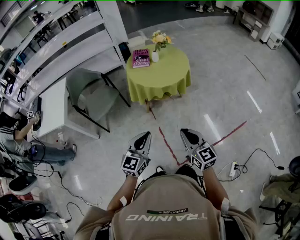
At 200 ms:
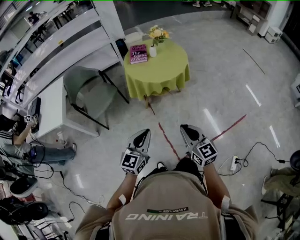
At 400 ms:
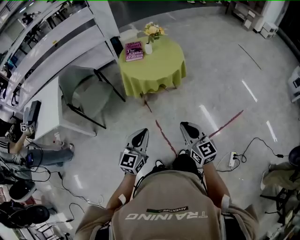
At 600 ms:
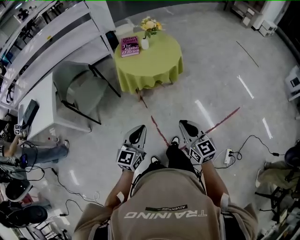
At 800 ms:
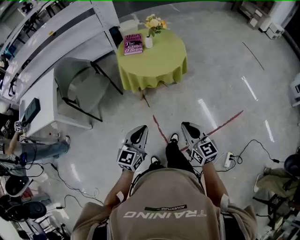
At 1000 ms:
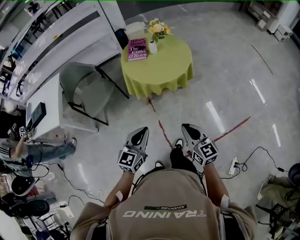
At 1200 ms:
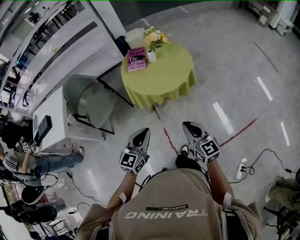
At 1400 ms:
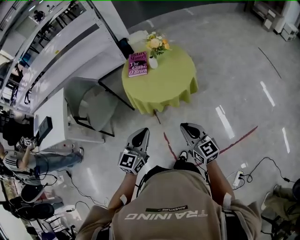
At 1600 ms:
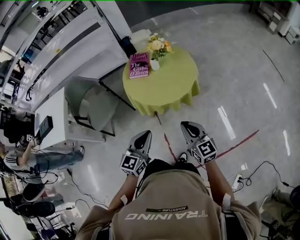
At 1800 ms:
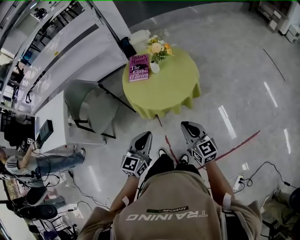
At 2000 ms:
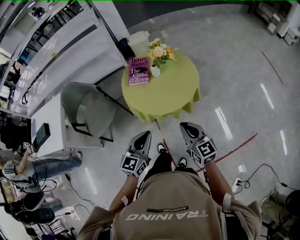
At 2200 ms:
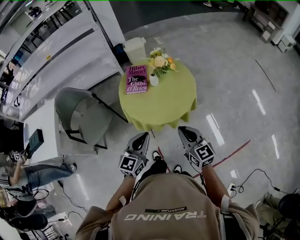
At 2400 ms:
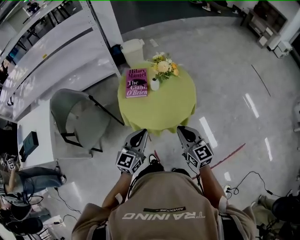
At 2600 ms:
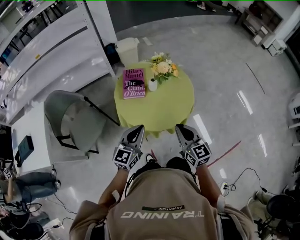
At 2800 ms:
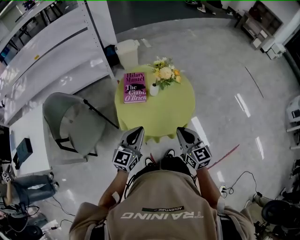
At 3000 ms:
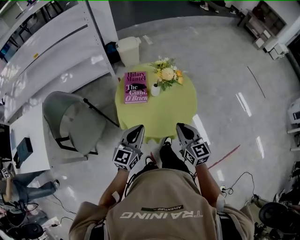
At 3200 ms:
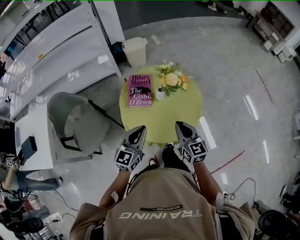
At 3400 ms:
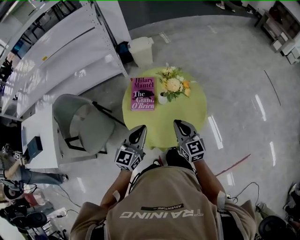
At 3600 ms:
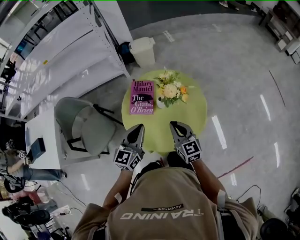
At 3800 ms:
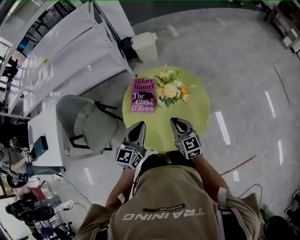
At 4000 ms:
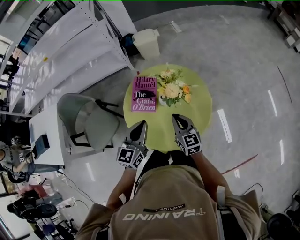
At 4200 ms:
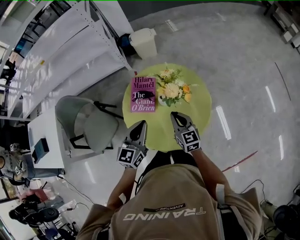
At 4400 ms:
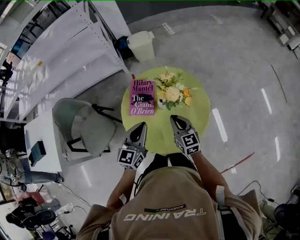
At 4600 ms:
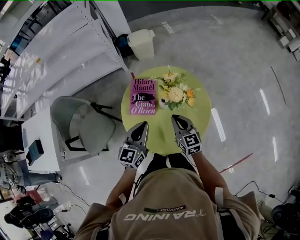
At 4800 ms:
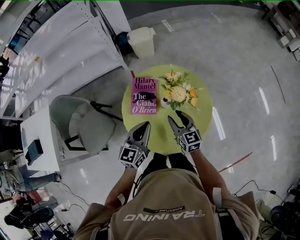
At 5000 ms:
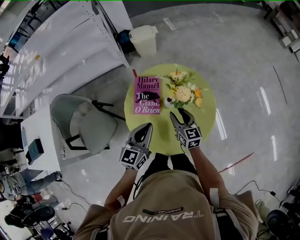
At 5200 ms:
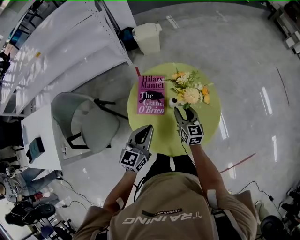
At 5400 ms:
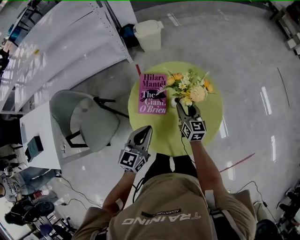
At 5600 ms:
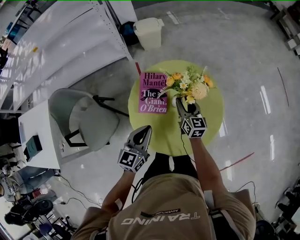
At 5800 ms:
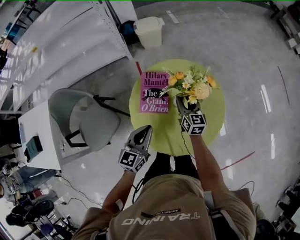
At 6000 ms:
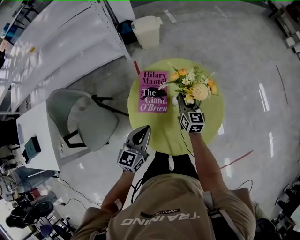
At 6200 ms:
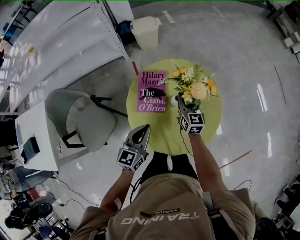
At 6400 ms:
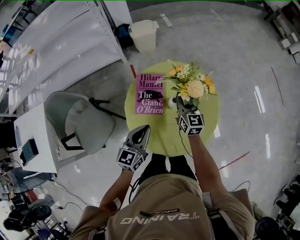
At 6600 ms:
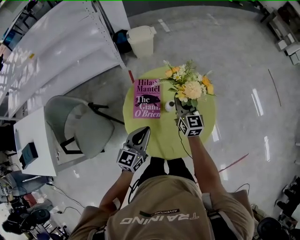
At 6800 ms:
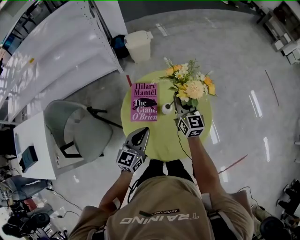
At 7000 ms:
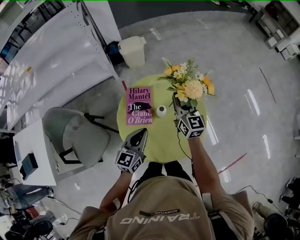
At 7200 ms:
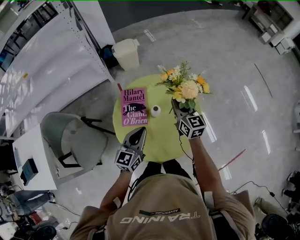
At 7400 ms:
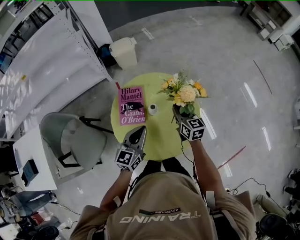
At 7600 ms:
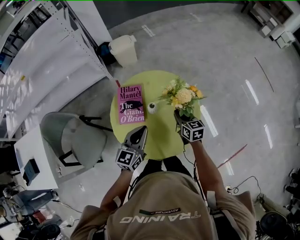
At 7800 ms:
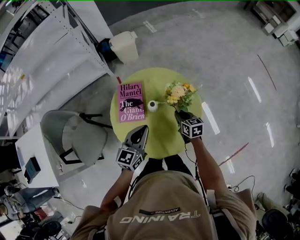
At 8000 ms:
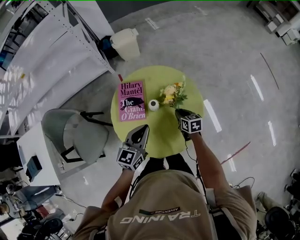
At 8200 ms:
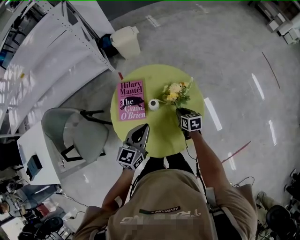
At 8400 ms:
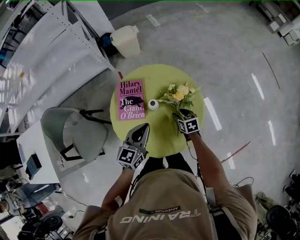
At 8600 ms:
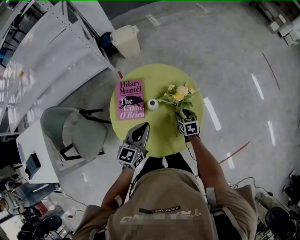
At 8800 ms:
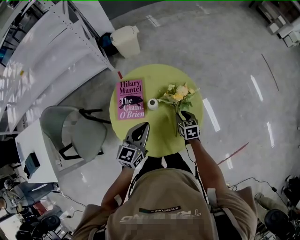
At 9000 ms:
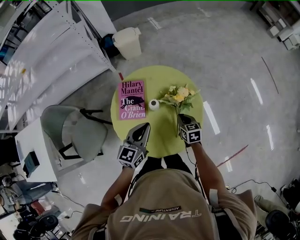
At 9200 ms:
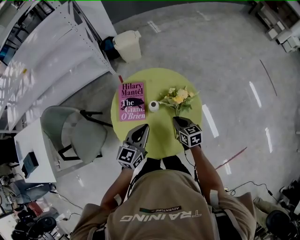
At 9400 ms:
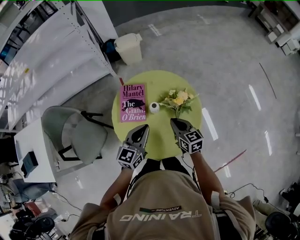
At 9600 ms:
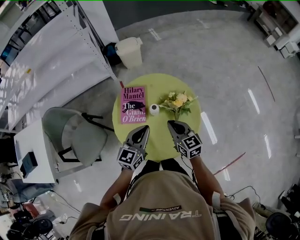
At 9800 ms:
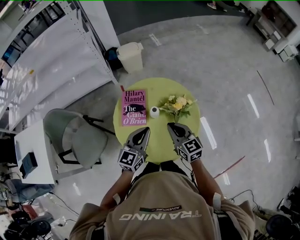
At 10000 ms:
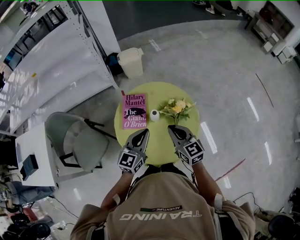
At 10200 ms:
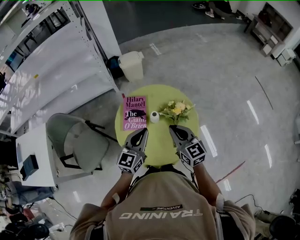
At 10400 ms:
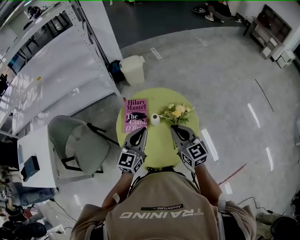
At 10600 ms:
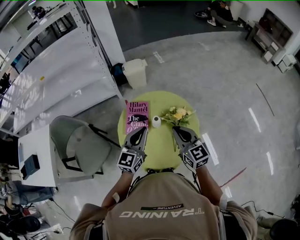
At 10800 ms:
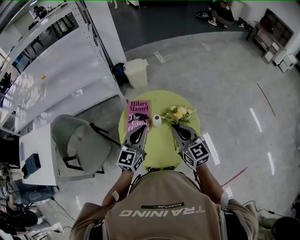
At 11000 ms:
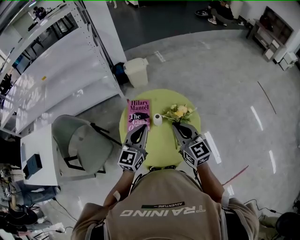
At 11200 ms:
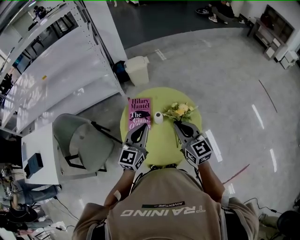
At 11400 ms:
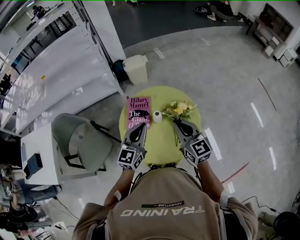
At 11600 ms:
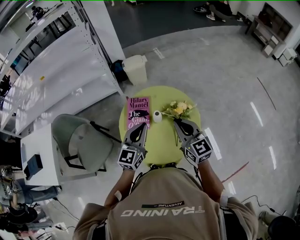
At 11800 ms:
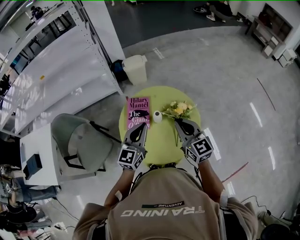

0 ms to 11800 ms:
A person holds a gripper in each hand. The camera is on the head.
0 ms to 1400 ms: The grippers both shift forward by roughly 25 cm.
1400 ms to 3000 ms: The grippers both shift forward by roughly 30 cm.
3000 ms to 4400 ms: The right gripper is displaced forward and downward by about 20 cm, while the left gripper moves forward, some 15 cm.
4400 ms to 6000 ms: The right gripper shifts approximately 15 cm forward and downward, and opens, then closes again; the left gripper heads to the left and downward, covering approximately 10 cm.
6000 ms to 7400 ms: The left gripper moves to the right, about 10 cm, while the right gripper travels to the right and upward by some 15 cm.
7400 ms to 8800 ms: The right gripper travels downward by roughly 15 cm, rotates roughly 30 degrees, and opens.
8800 ms to 10400 ms: The right gripper heads upward, covering roughly 30 cm, tilts its fingers roughly 40 degrees upward, and closes its fingers. The left gripper goes about 10 cm upward.
10400 ms to 11800 ms: There are only small adjustments of the grippers.

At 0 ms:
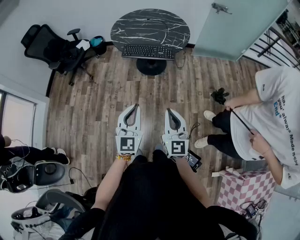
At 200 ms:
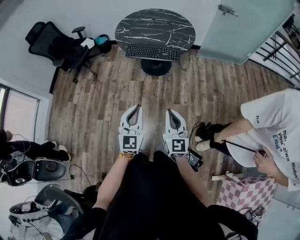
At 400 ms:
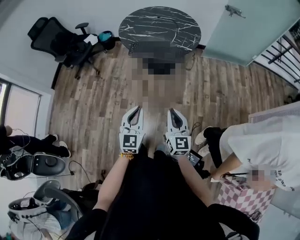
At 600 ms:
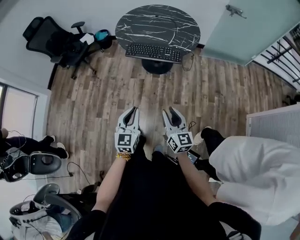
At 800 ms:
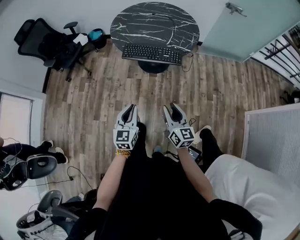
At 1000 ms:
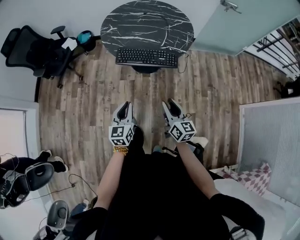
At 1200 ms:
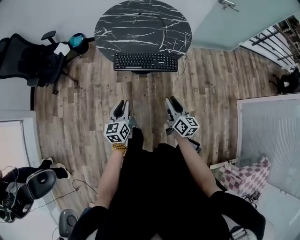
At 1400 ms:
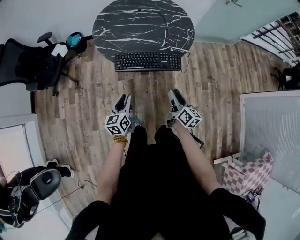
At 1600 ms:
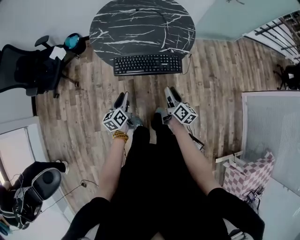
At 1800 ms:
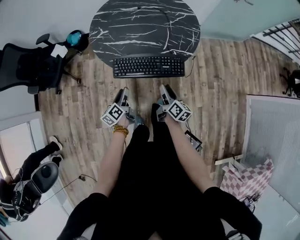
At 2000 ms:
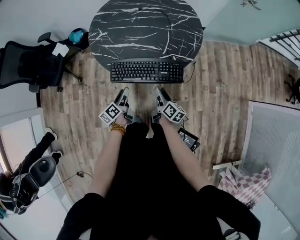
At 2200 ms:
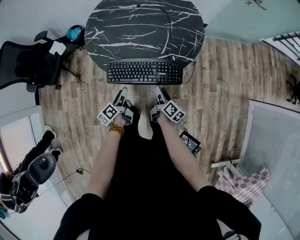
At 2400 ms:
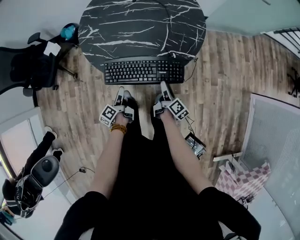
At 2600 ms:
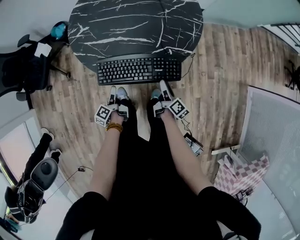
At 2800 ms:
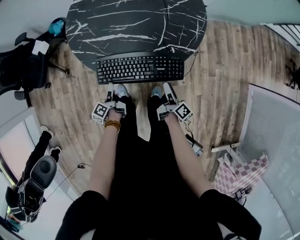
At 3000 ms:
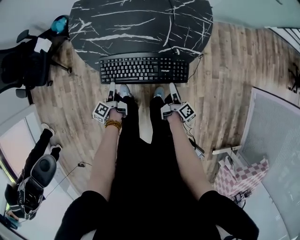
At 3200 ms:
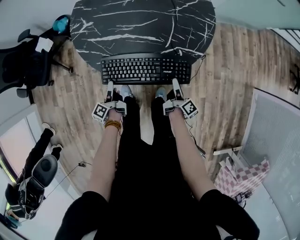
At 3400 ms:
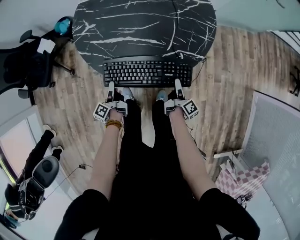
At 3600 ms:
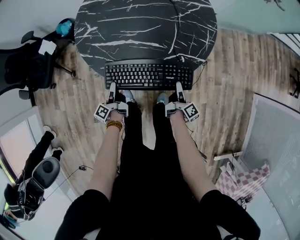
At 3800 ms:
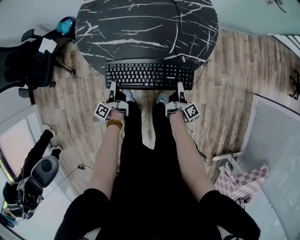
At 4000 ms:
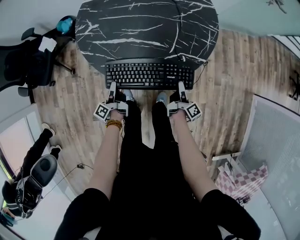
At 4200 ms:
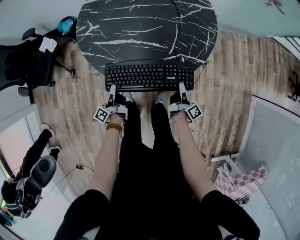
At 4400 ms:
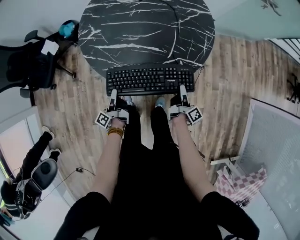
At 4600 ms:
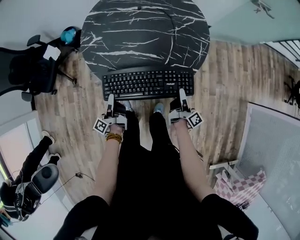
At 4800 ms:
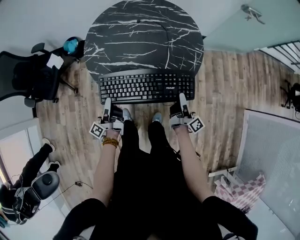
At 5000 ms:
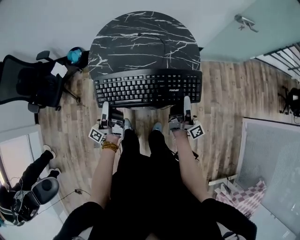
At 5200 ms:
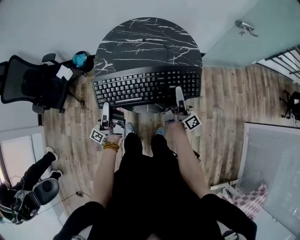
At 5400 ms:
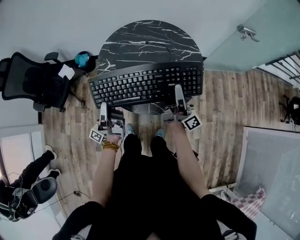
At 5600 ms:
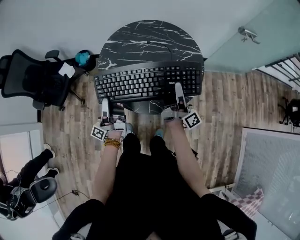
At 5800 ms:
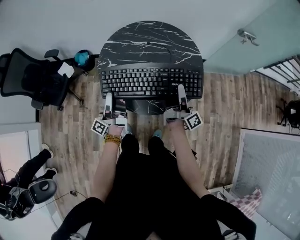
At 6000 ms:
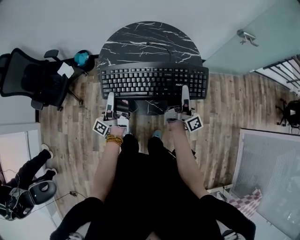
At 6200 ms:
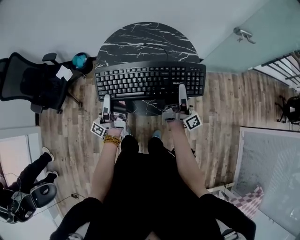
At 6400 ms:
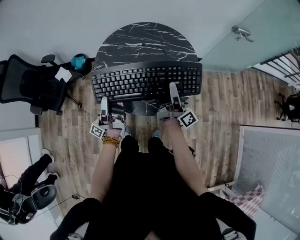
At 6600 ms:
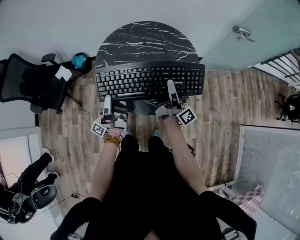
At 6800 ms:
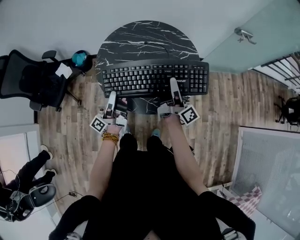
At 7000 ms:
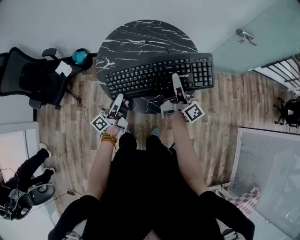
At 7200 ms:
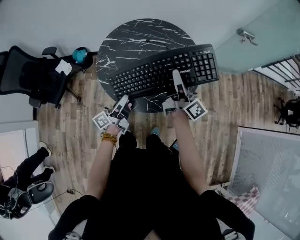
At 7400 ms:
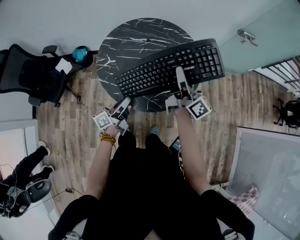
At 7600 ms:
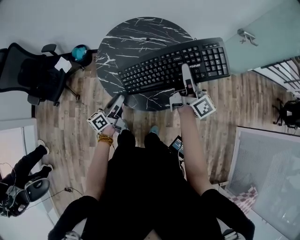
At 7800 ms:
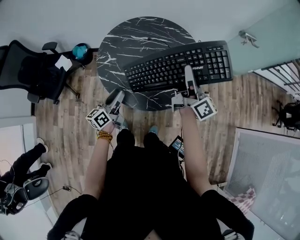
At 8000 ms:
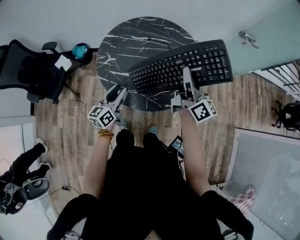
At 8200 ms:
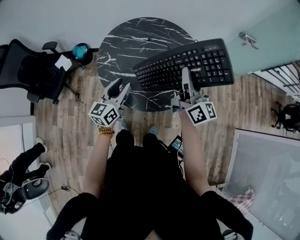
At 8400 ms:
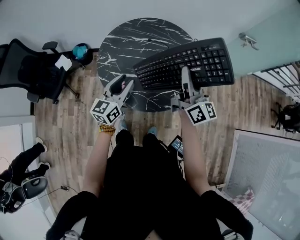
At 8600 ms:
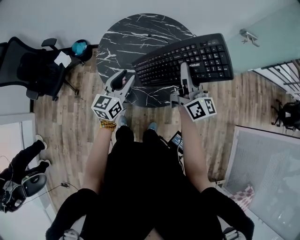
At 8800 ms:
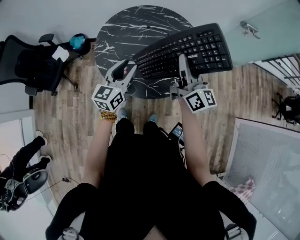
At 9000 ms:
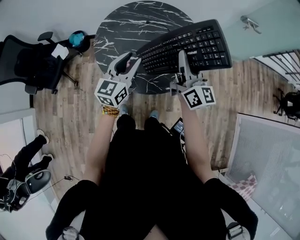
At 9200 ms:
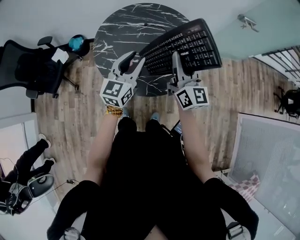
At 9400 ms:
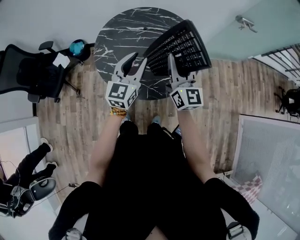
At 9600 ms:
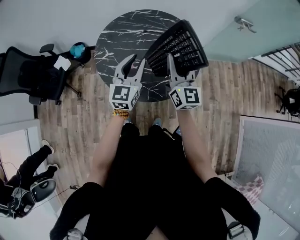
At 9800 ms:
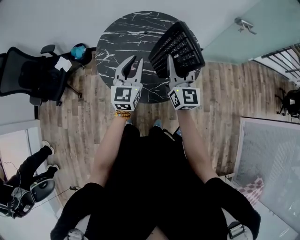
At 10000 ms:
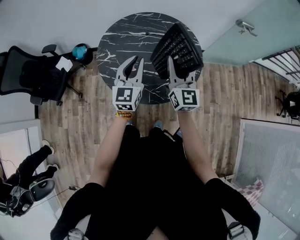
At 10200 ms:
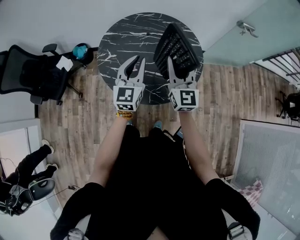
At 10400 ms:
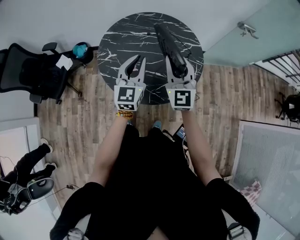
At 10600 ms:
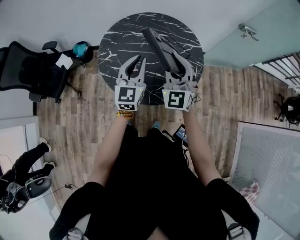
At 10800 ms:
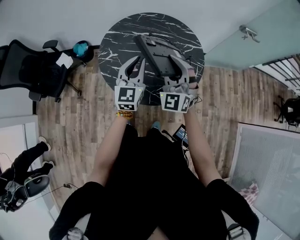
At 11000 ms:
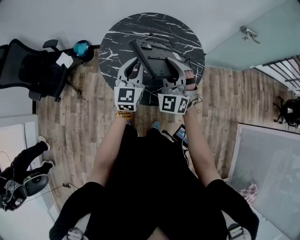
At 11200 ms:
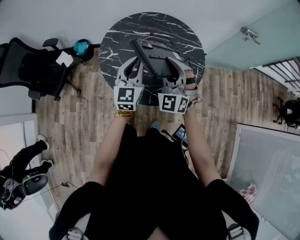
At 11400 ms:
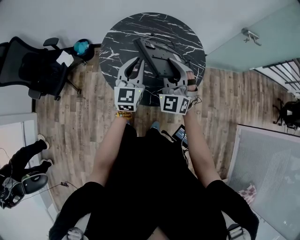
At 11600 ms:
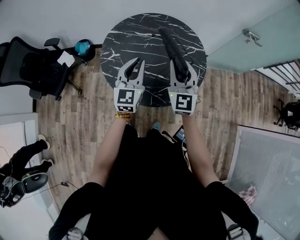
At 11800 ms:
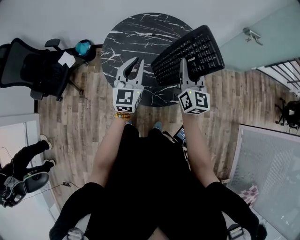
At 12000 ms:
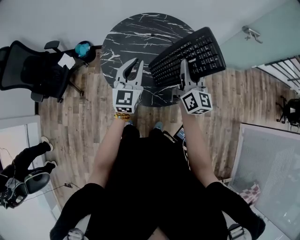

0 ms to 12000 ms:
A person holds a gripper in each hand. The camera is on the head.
0 ms to 1600 ms: The grippers both shift forward and downward by some 40 cm. The right gripper rotates around the line of its fingers by roughly 50 degrees, clockwise from behind, and opens up; the left gripper rolls counterclockwise, seen from behind, by approximately 50 degrees, and opens its fingers.
1600 ms to 3000 ms: Both grippers travel together downward and forward, roughly 20 cm. The left gripper turns by about 40 degrees, and opens its fingers. Meanwhile the right gripper swivels some 30 degrees.
3000 ms to 4400 ms: The left gripper heads upward, covering about 5 cm, rotates roughly 20 degrees, and closes up; the right gripper changes place by some 5 cm, and closes up.
4400 ms to 6000 ms: The grippers both shift upward by approximately 30 cm. The right gripper angles its fingers upward, by some 40 degrees. Meanwhile the left gripper tilts its fingers about 40 degrees upward, and opens and closes again.
6000 ms to 7600 ms: The right gripper is displaced upward by about 10 cm, and changes its angle by some 30 degrees. The left gripper is displaced downward by some 10 cm, changes its angle by approximately 40 degrees, and opens up.
7600 ms to 9000 ms: The right gripper changes its angle by approximately 30 degrees. The left gripper shifts roughly 15 cm upward, to the right and forward, and rotates around the line of its fingers by about 50 degrees, clockwise from behind.
9000 ms to 10400 ms: The left gripper closes its fingers. Meanwhile the right gripper heads to the left, covering about 5 cm, and rotates around the line of its fingers by approximately 40 degrees, counterclockwise from behind.
10400 ms to 12000 ms: The right gripper shifts approximately 5 cm to the right, and rolls clockwise, seen from behind, by approximately 40 degrees.
